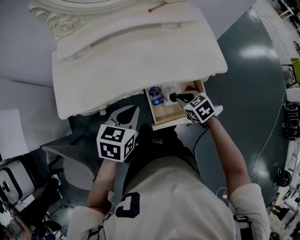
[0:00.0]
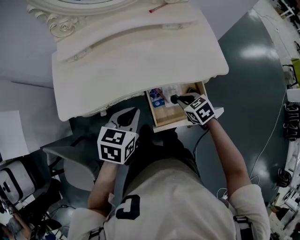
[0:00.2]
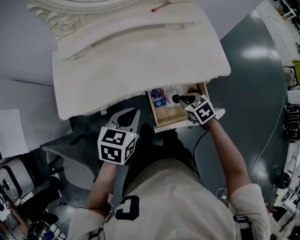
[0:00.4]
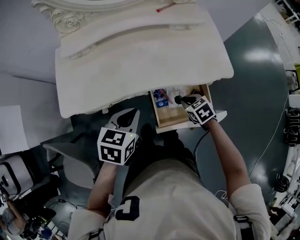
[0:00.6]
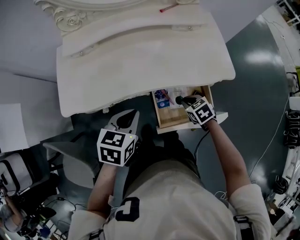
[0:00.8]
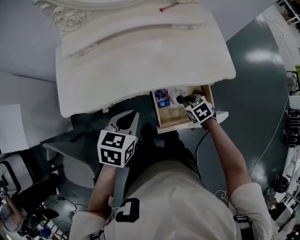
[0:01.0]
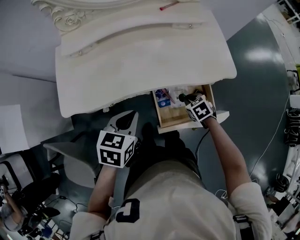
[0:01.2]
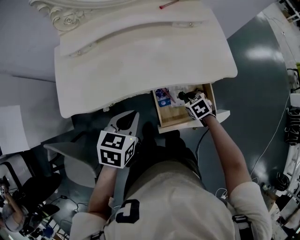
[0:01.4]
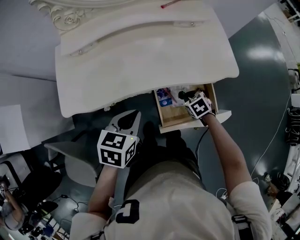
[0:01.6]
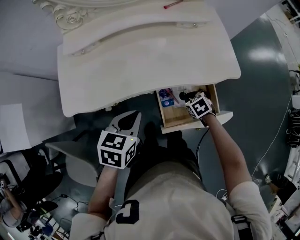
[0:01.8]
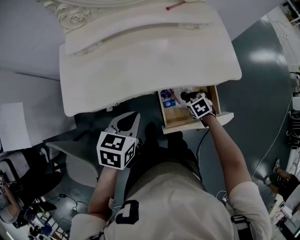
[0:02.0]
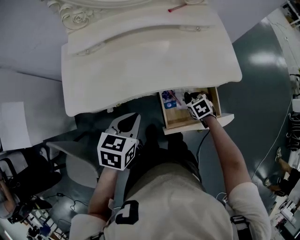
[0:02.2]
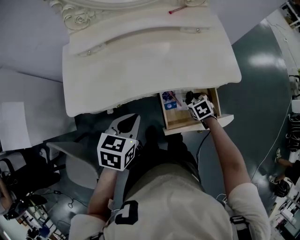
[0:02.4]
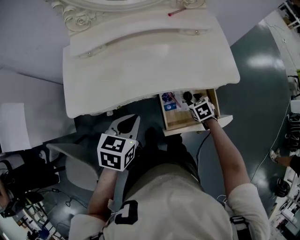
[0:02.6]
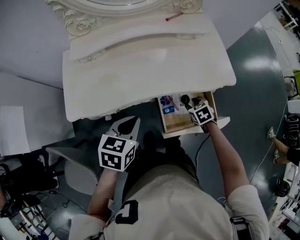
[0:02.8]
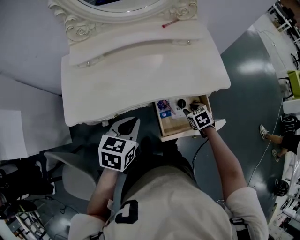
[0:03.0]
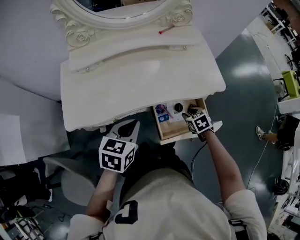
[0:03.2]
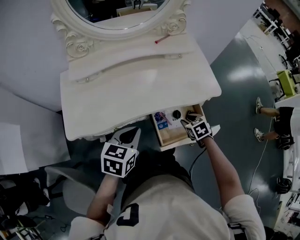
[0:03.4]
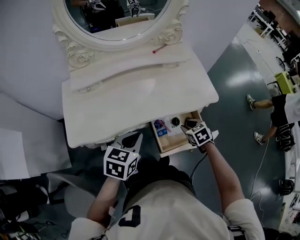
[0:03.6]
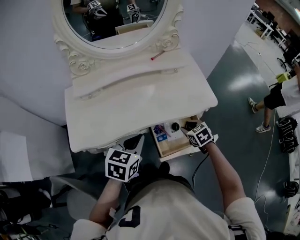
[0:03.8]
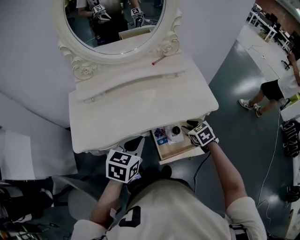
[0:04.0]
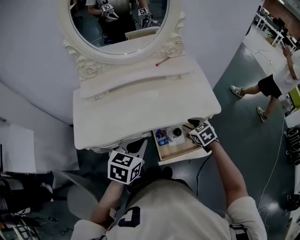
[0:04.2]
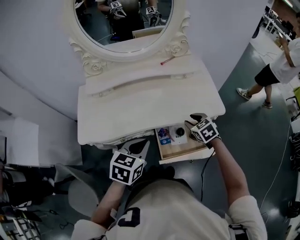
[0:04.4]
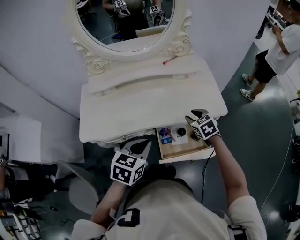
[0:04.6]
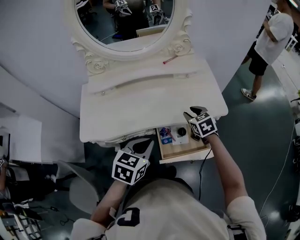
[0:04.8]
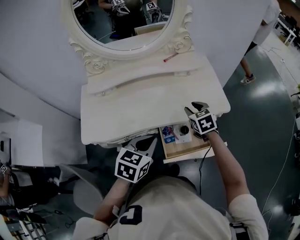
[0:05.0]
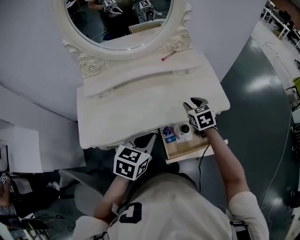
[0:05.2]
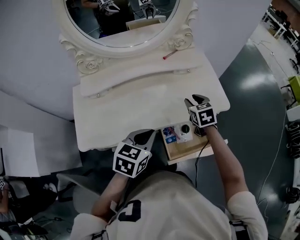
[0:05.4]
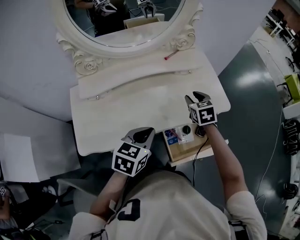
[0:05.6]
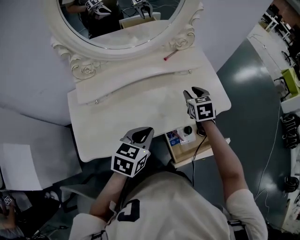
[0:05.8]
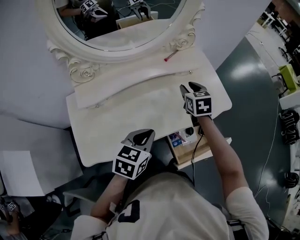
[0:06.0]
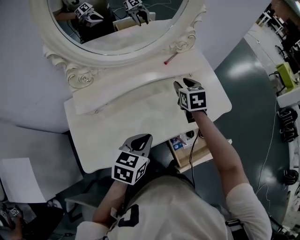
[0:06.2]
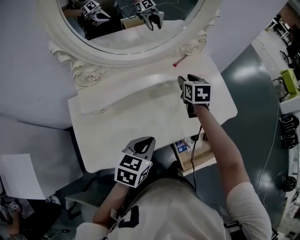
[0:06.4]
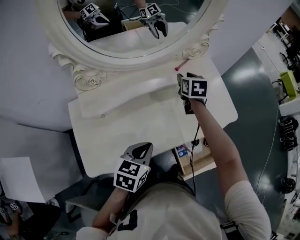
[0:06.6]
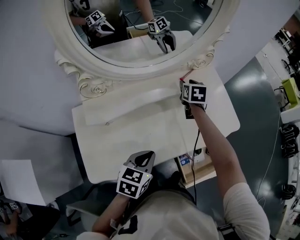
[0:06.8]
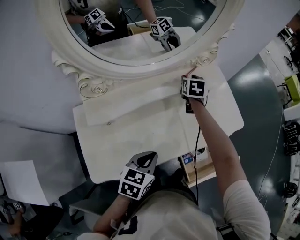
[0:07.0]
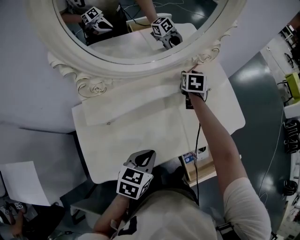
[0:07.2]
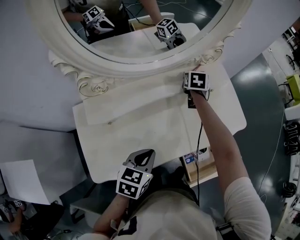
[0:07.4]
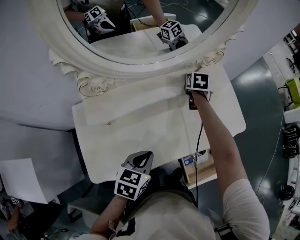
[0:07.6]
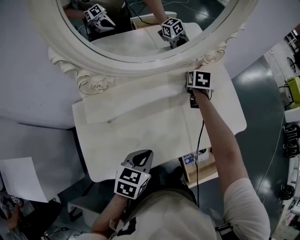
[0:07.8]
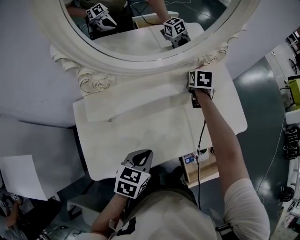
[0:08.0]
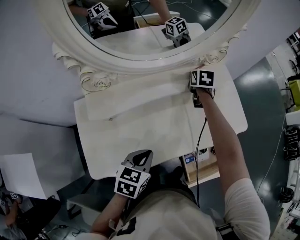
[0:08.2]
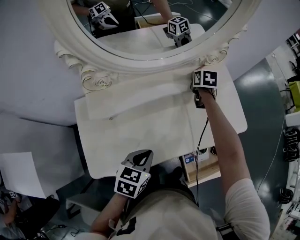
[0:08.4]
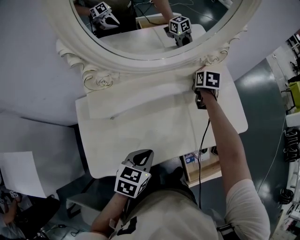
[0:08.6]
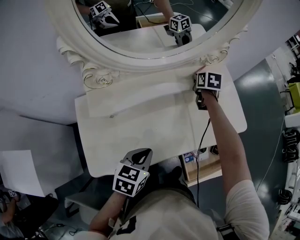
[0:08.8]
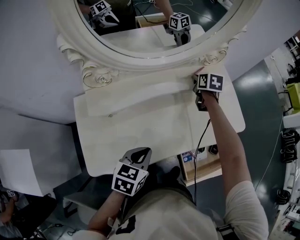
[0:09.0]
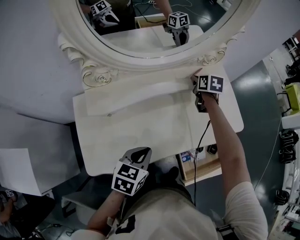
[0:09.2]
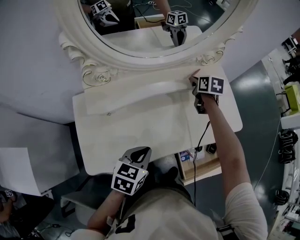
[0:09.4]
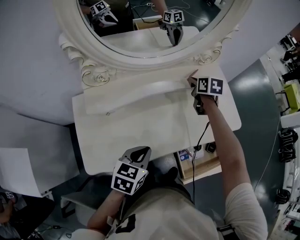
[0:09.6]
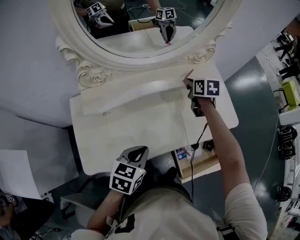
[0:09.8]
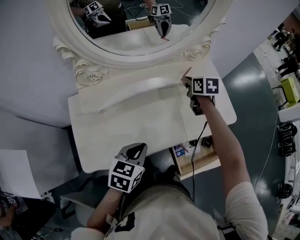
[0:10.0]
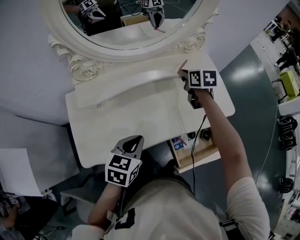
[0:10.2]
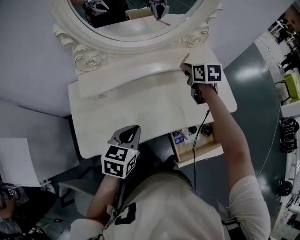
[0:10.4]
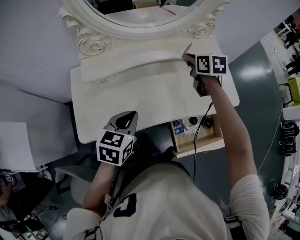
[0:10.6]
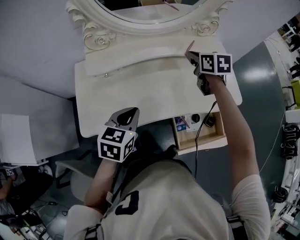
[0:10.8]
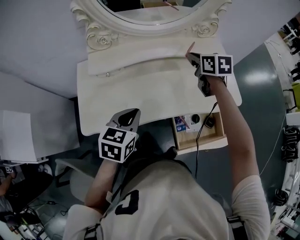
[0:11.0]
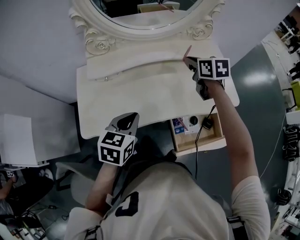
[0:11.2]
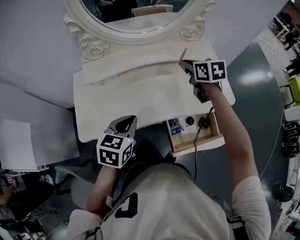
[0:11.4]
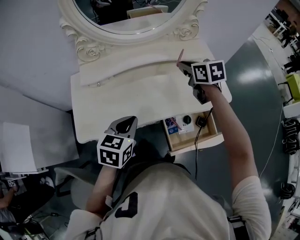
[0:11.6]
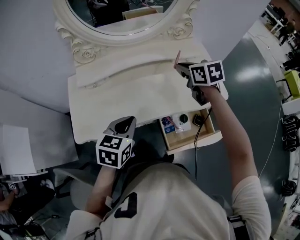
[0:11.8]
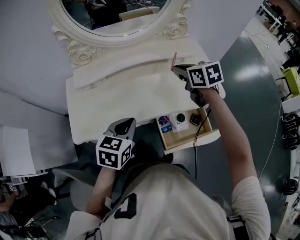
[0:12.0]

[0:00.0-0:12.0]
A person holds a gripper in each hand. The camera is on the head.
0:00.0 to 0:01.6: The right gripper goes about 10 cm downward.
0:01.6 to 0:03.0: The right gripper opens.
0:03.0 to 0:04.4: The left gripper heads to the right and upward, covering roughly 10 cm. Meanwhile the right gripper moves upward and forward, roughly 15 cm.
0:04.4 to 0:06.0: The left gripper heads forward and to the left, covering about 15 cm. The right gripper heads forward, to the left and upward, covering approximately 20 cm, and turns by approximately 30 degrees.
0:06.0 to 0:07.6: The right gripper heads forward and to the left, covering about 20 cm, while the left gripper travels to the left by some 10 cm.
0:07.6 to 0:09.0: The right gripper closes its fingers.
0:09.0 to 0:10.4: The right gripper shifts approximately 10 cm backward and upward.
0:10.4 to 0:12.0: The left gripper goes roughly 10 cm backward and to the right. The right gripper shifts approximately 15 cm backward and upward.

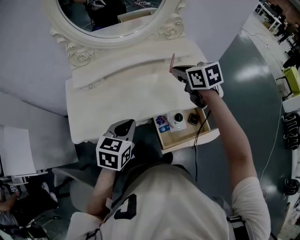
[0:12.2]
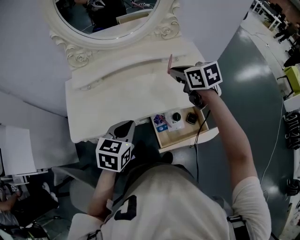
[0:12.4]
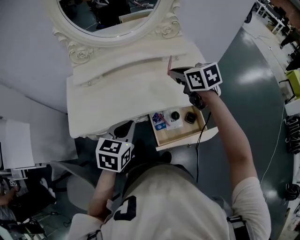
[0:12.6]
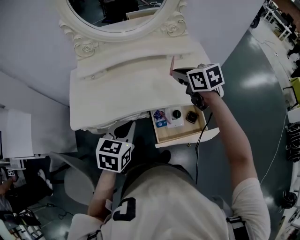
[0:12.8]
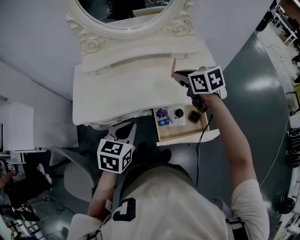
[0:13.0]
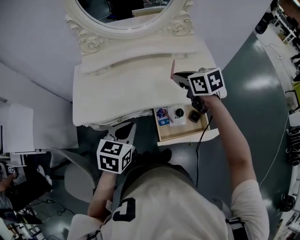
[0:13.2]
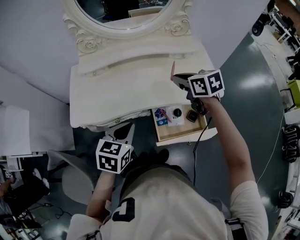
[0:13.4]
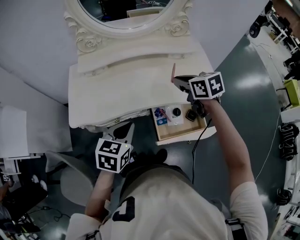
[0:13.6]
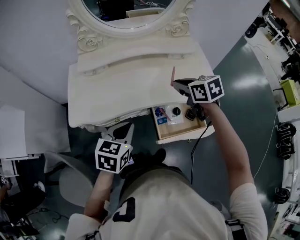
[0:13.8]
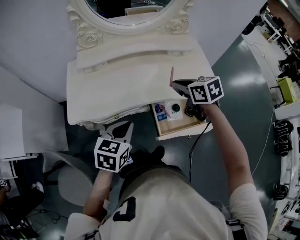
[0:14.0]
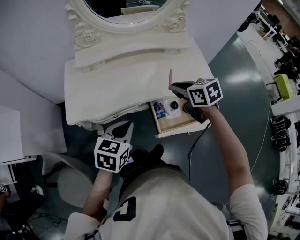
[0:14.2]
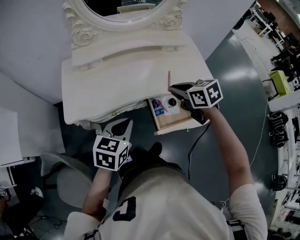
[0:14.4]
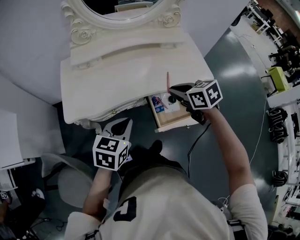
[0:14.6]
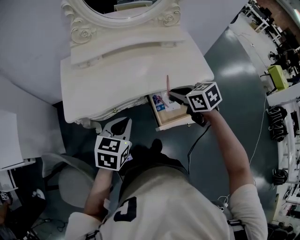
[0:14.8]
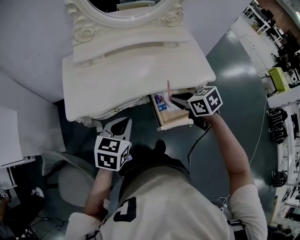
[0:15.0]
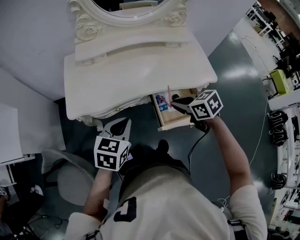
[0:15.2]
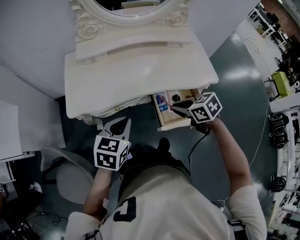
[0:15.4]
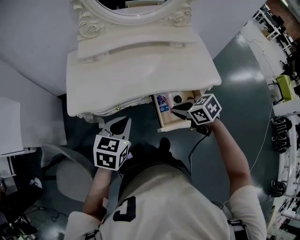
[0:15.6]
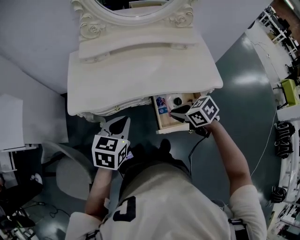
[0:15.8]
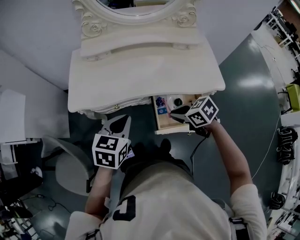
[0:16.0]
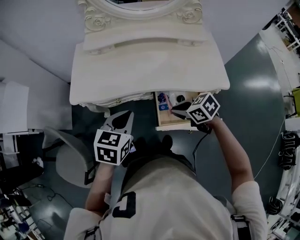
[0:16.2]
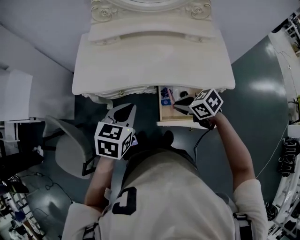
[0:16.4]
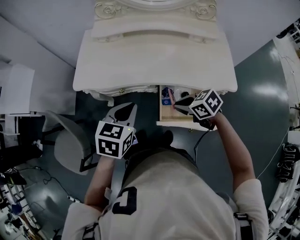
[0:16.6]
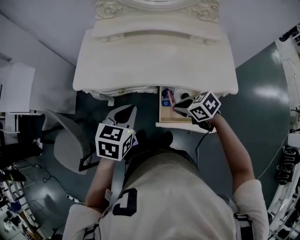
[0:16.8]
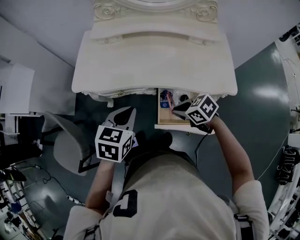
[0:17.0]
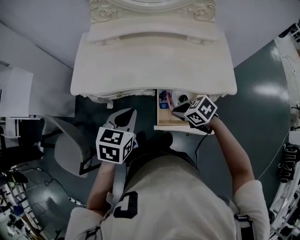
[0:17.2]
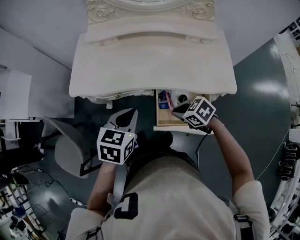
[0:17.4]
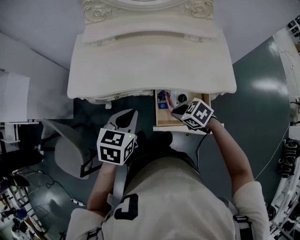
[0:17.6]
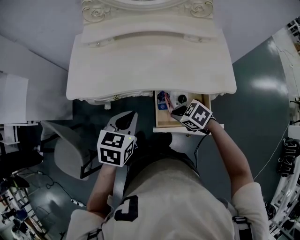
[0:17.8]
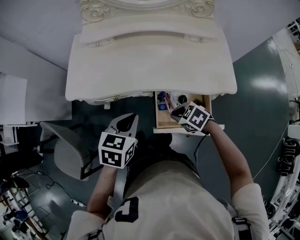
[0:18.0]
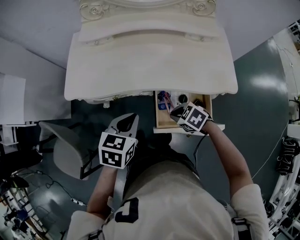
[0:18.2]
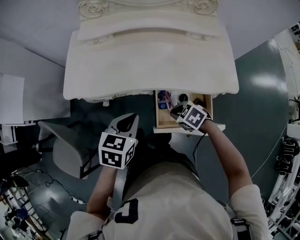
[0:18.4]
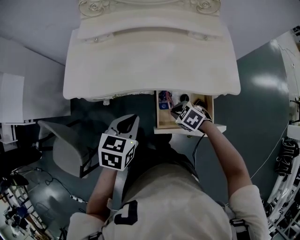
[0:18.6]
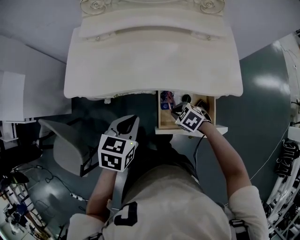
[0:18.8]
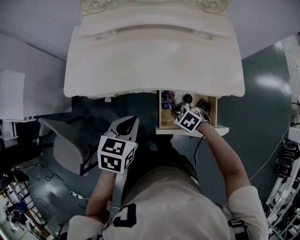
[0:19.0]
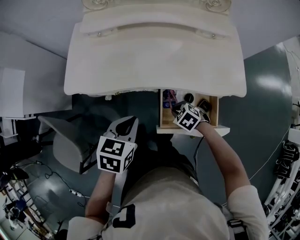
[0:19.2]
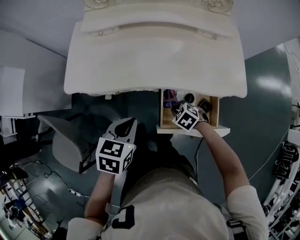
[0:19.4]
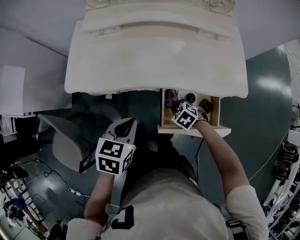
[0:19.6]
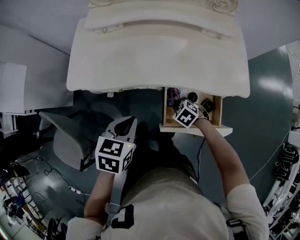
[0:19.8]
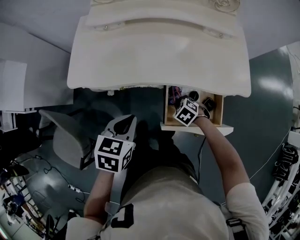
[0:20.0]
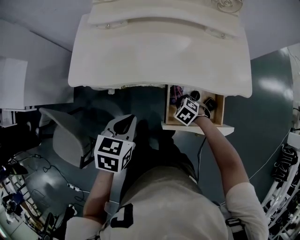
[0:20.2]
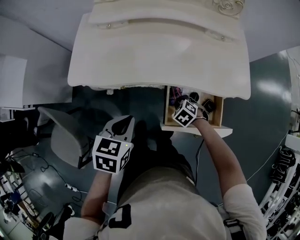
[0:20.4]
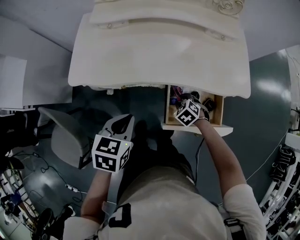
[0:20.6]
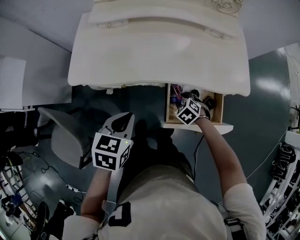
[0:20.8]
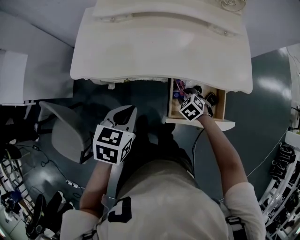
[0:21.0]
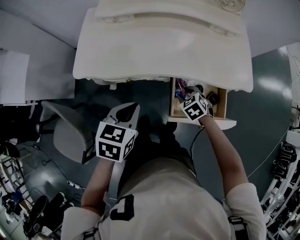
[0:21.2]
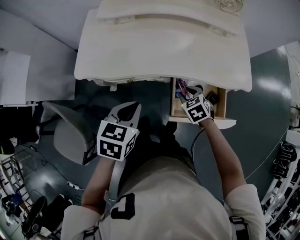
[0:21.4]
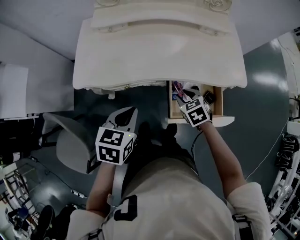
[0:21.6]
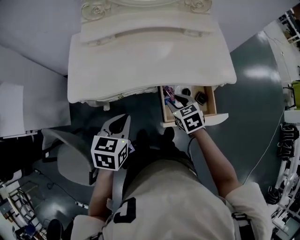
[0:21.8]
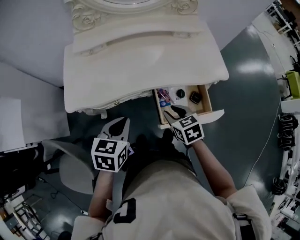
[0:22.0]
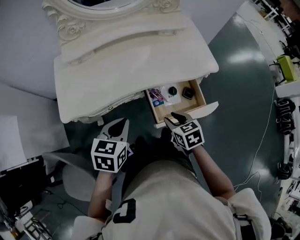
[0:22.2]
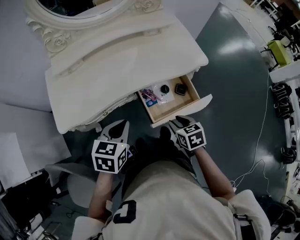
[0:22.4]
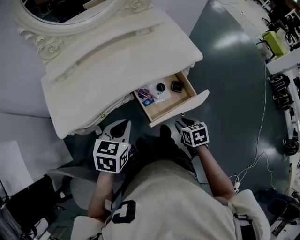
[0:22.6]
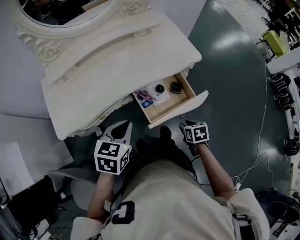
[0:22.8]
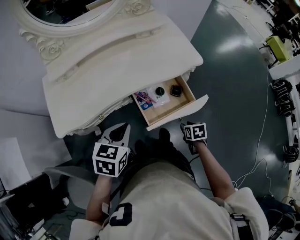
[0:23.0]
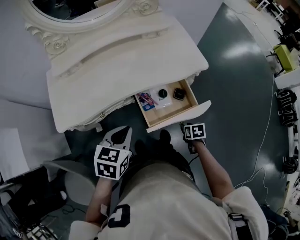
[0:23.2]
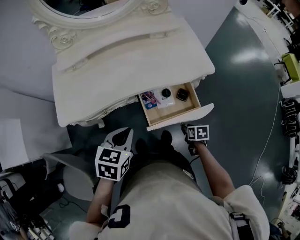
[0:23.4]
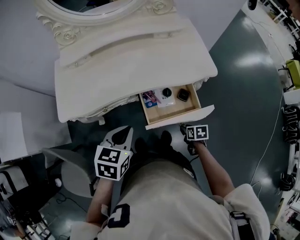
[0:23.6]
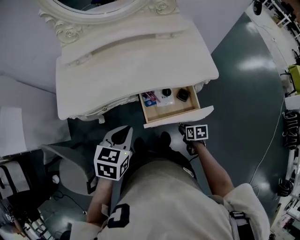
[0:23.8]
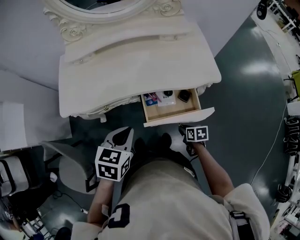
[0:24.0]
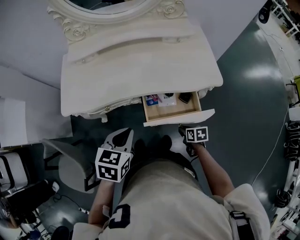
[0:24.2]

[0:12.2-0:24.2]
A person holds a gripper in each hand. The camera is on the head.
0:12.2 to 0:13.8: Both grippers move backward, some 10 cm.
0:13.8 to 0:15.2: The left gripper goes approximately 5 cm to the left. Meanwhile the right gripper is displaced backward, downward and to the left by some 15 cm.
0:15.2 to 0:16.6: The left gripper ends up roughly 10 cm from where it was; the right gripper moves downward, approximately 5 cm, and rotates approximately 30 degrees.
0:16.6 to 0:18.2: The right gripper heads downward, covering some 10 cm. Meanwhile the left gripper moves approximately 5 cm.
0:18.2 to 0:19.8: The right gripper heads downward, covering approximately 10 cm.
0:19.8 to 0:21.2: The right gripper moves about 5 cm, and opens its fingers.
0:21.2 to 0:22.6: The left gripper shifts by some 5 cm, and swivels approximately 30 degrees; the right gripper changes place by some 20 cm, and rotates around the line of its fingers by roughly 60 degrees, clockwise from behind.
0:22.6 to 0:24.2: The right gripper moves downward, roughly 10 cm.
